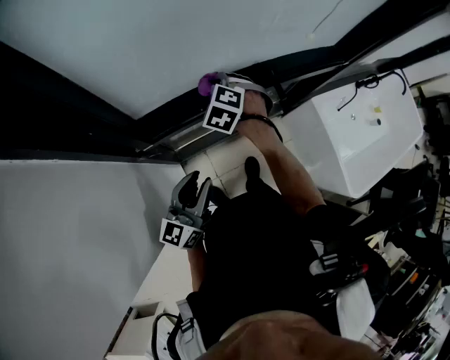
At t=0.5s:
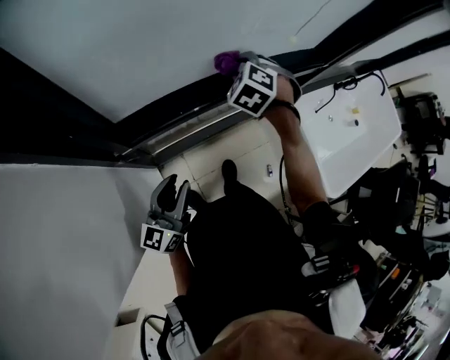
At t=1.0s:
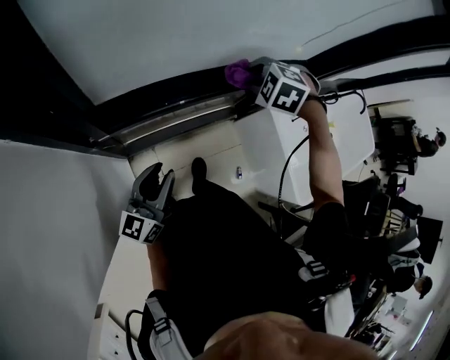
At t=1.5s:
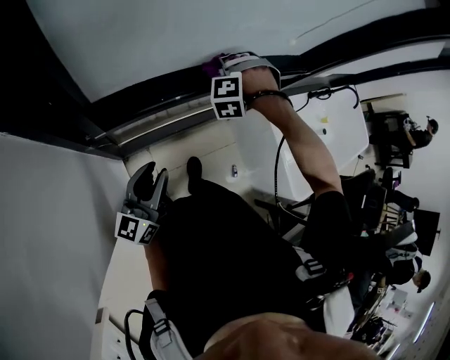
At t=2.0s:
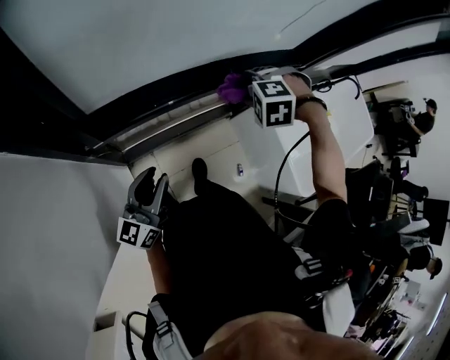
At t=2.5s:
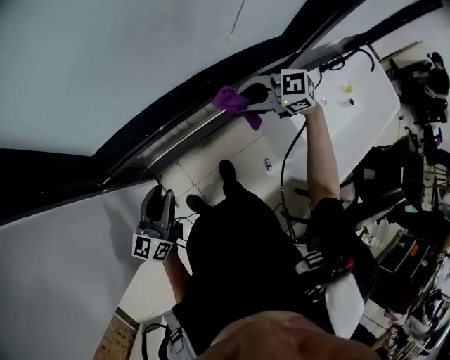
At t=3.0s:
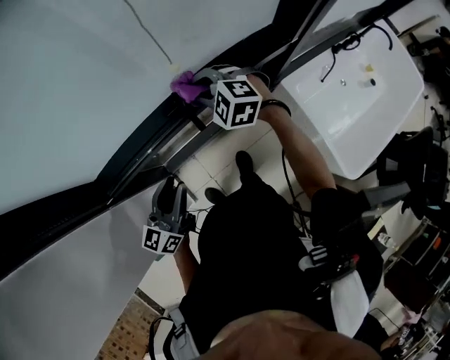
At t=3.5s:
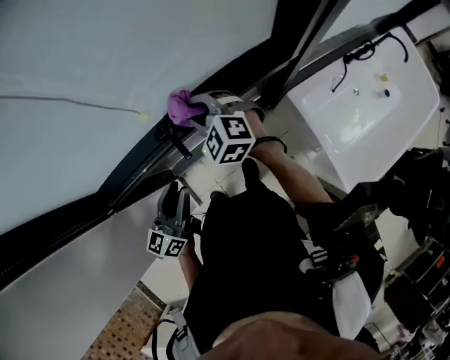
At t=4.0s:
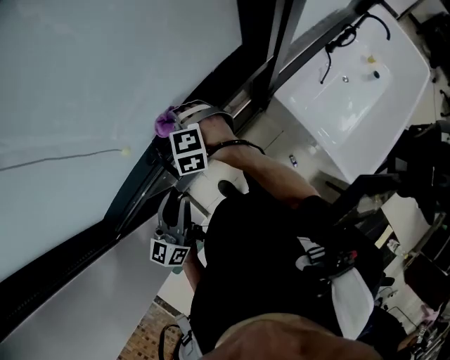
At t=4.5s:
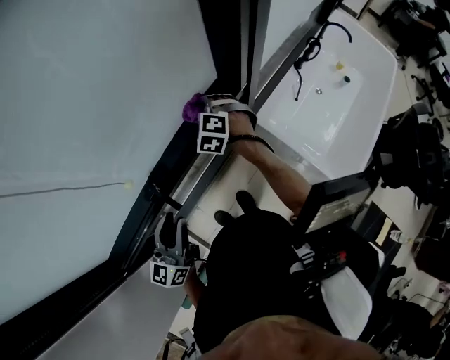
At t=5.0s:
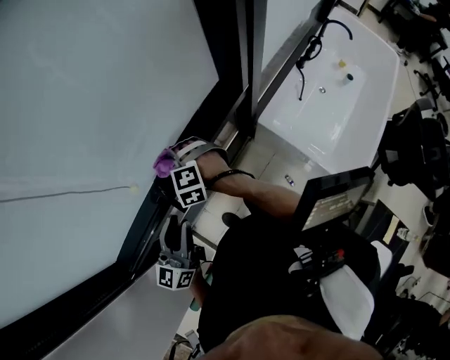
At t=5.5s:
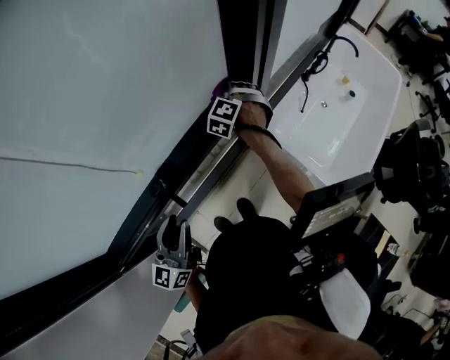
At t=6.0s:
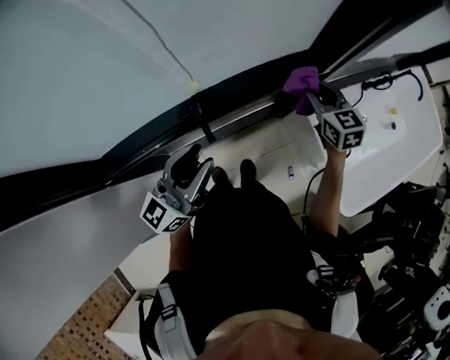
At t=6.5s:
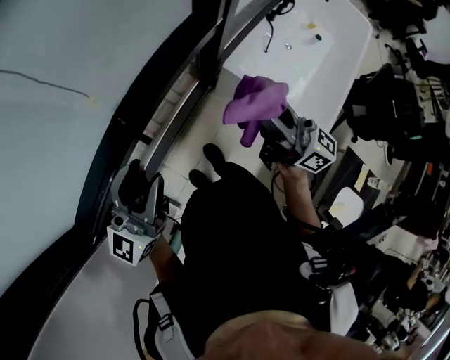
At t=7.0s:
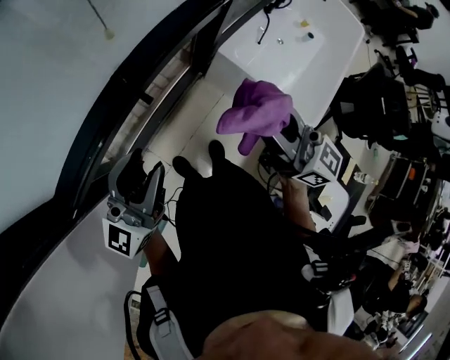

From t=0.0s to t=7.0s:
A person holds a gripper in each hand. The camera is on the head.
From t=0.0s to t=2.0s: The right gripper goes about 20 cm to the right, and changes its angle by about 40 degrees.
From t=2.0s to t=3.5s: The left gripper ends up approximately 25 cm from where it was; the right gripper moves roughly 10 cm, and angles its fingers upward, by some 40 degrees.
From t=3.5s to t=5.0s: The left gripper ends up some 10 cm from where it was. The right gripper swivels about 20 degrees.
From t=5.0s to t=7.0s: The left gripper ends up some 10 cm from where it was, and turns by some 20 degrees. Meanwhile the right gripper changes place by approximately 35 cm, and angles its fingers upward, by about 60 degrees.

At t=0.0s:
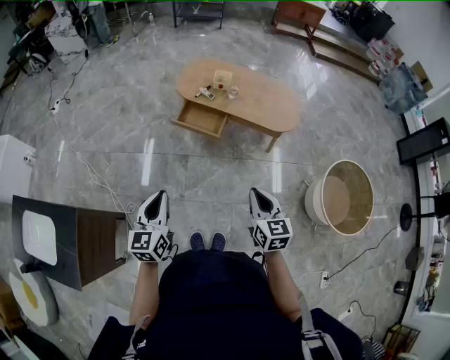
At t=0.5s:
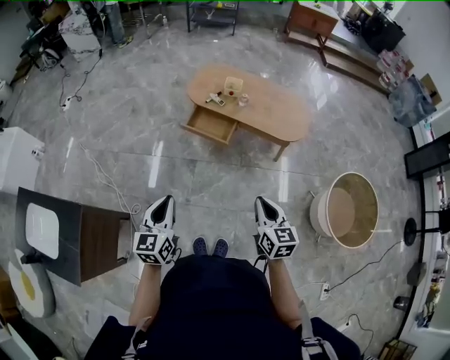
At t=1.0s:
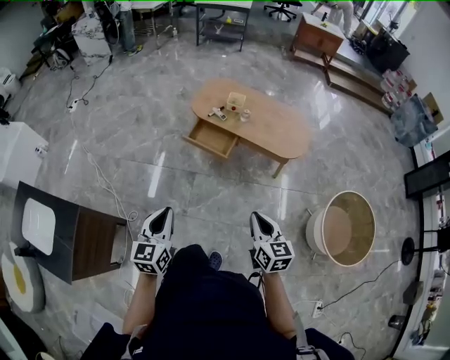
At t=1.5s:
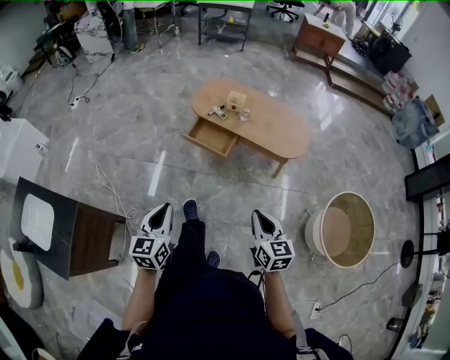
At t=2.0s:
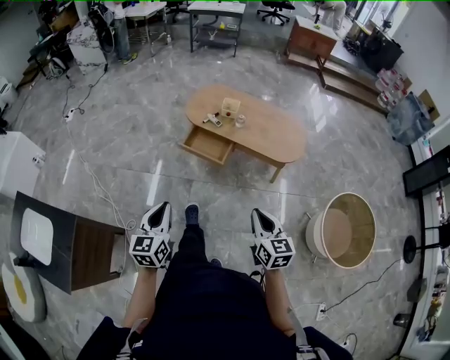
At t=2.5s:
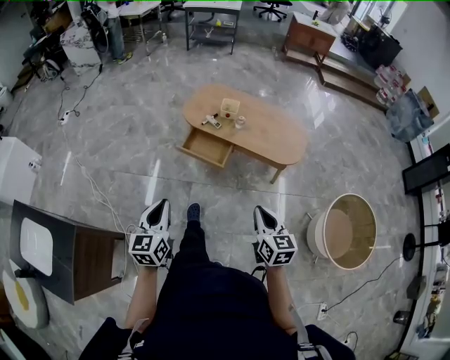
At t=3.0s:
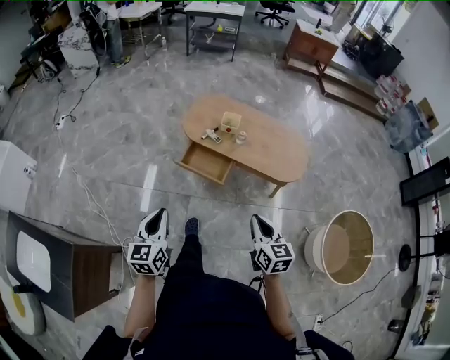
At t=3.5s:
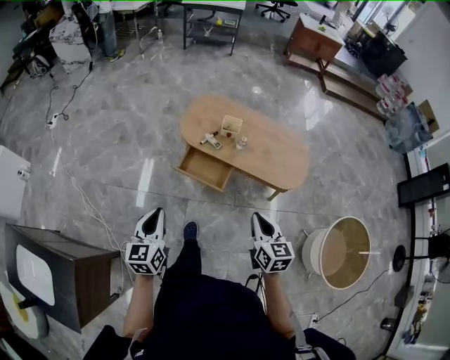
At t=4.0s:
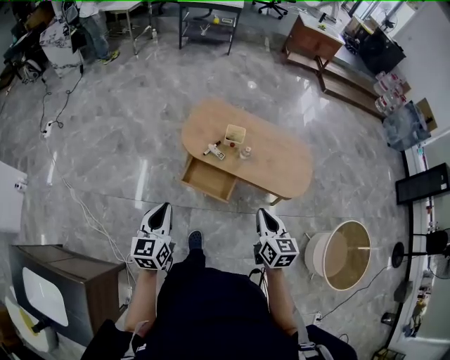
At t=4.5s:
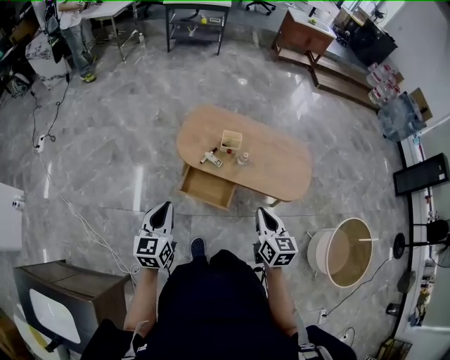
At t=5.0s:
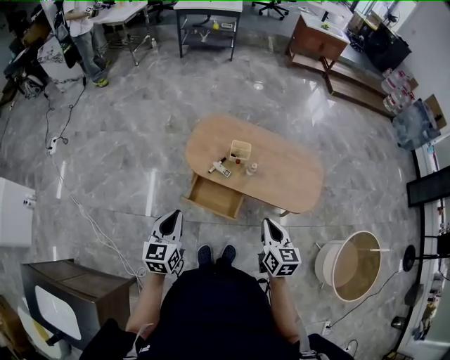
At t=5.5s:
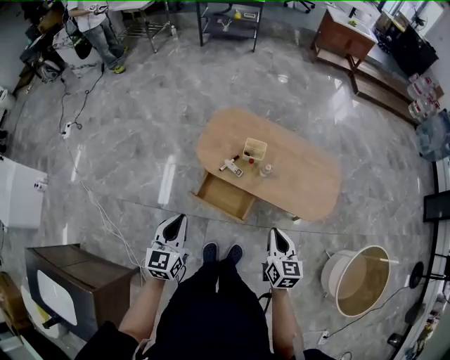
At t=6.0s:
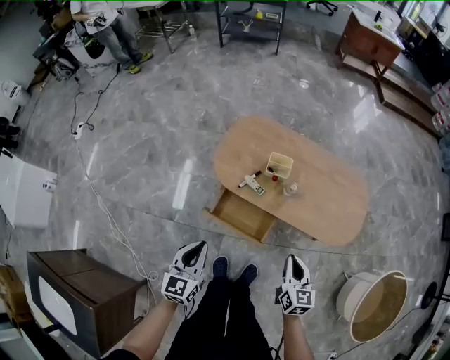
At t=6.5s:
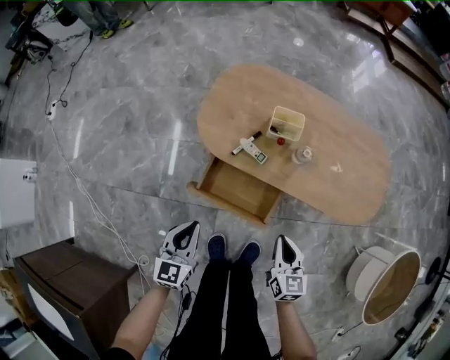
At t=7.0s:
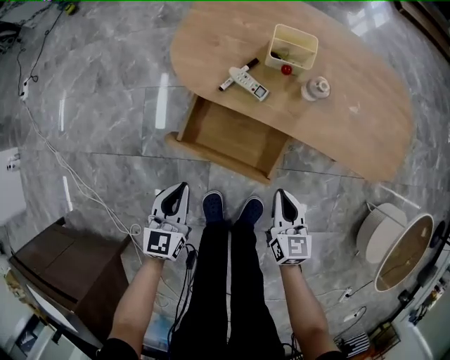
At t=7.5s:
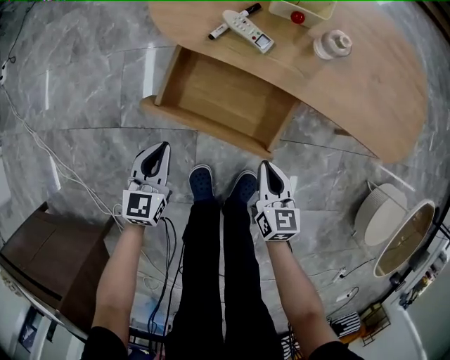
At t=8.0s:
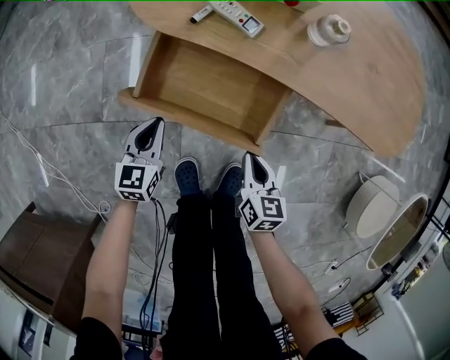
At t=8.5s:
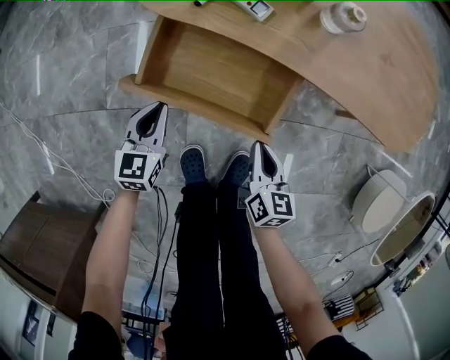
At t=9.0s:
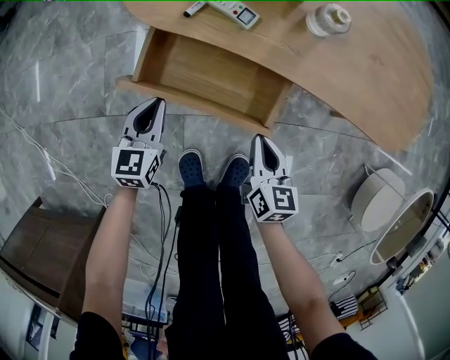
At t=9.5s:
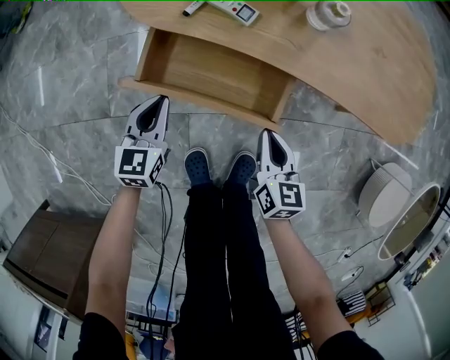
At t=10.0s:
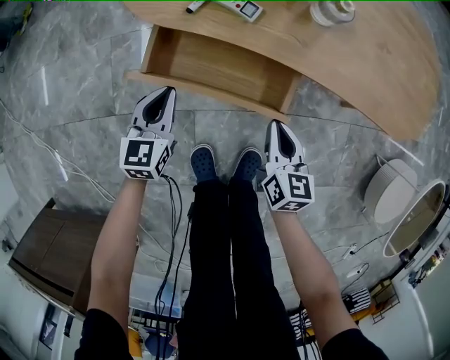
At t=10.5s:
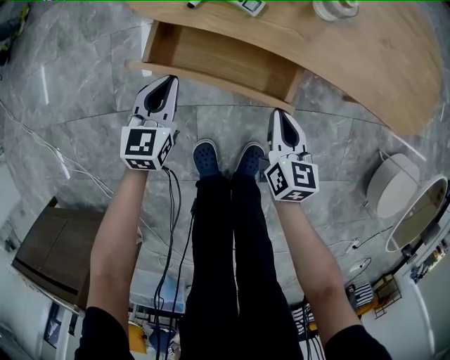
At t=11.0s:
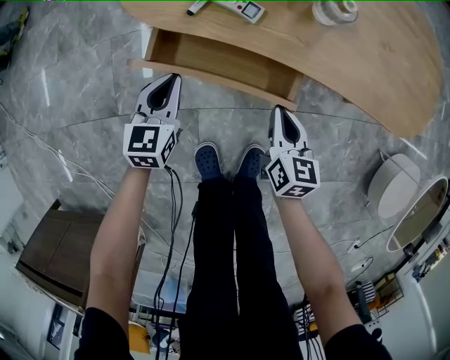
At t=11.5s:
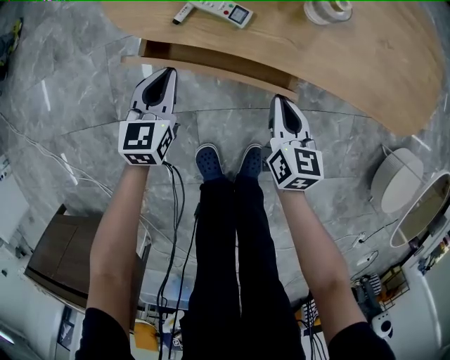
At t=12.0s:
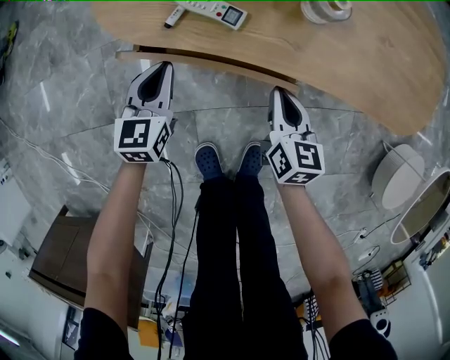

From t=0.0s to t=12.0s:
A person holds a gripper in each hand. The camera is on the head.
From t=0.0s to t=2.0s: The grippers make only small movements.
From t=2.0s to t=4.0s: The grippers both shift forward by about 35 cm.
From t=4.0s to t=6.0s: Both grippers travel together downward and forward, roughly 20 cm.
From t=6.0s to t=8.0s: Both grippers move downward, about 50 cm.
From t=8.0s to t=10.0s: The two grippers go some 5 cm forward.
From t=10.0s to t=12.0s: The two grippers go about 10 cm forward.

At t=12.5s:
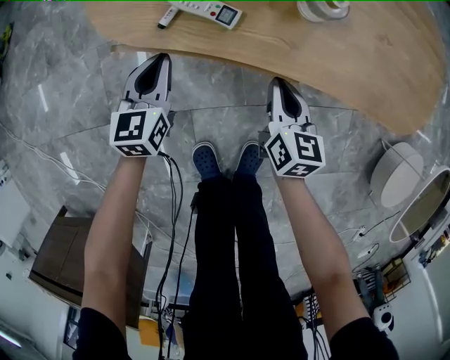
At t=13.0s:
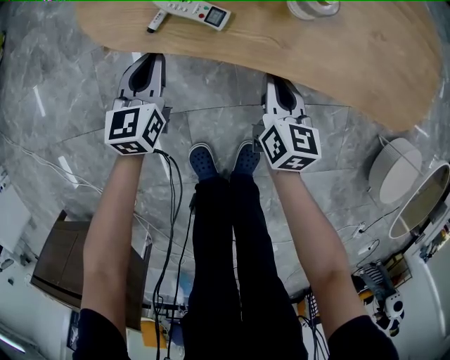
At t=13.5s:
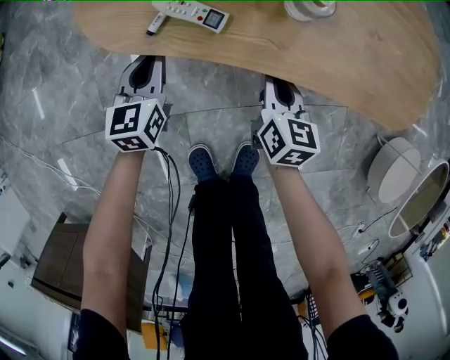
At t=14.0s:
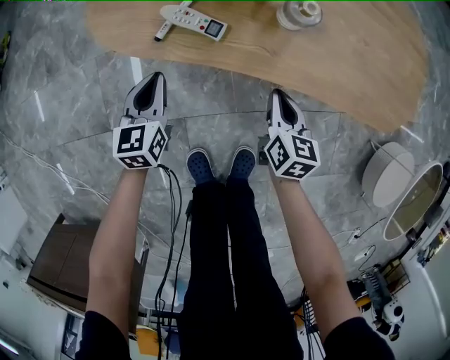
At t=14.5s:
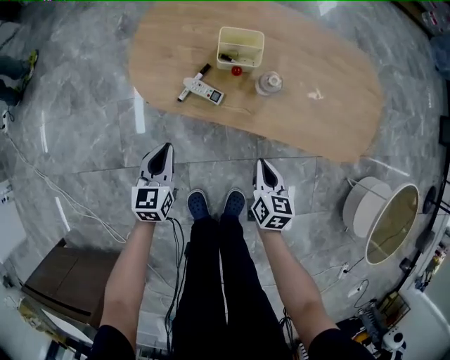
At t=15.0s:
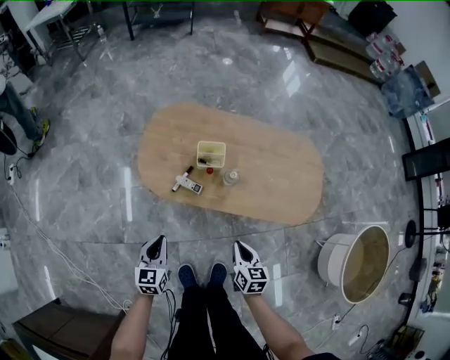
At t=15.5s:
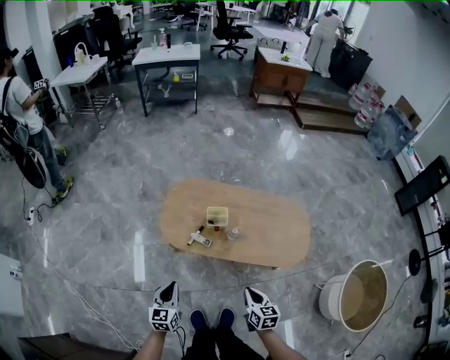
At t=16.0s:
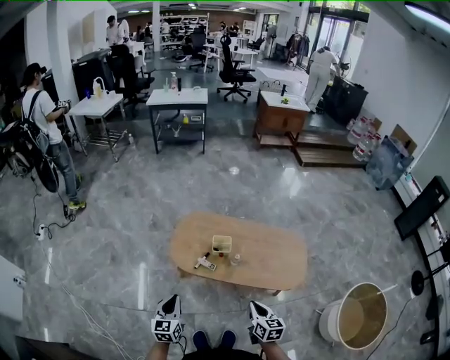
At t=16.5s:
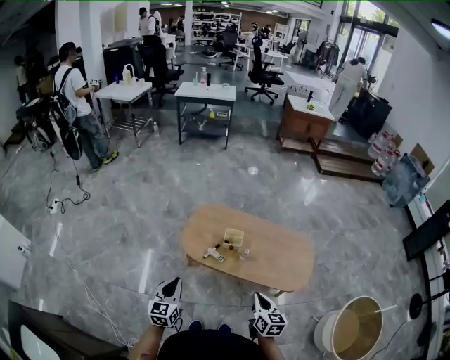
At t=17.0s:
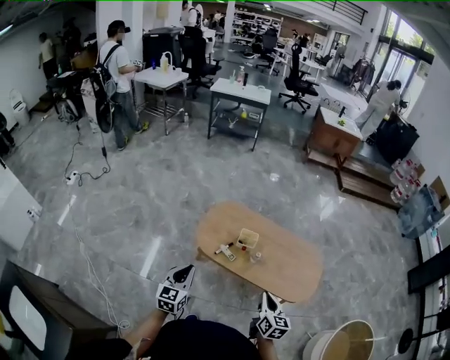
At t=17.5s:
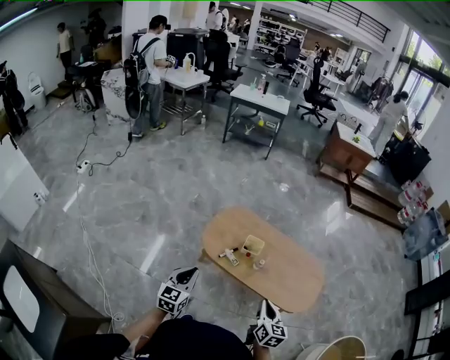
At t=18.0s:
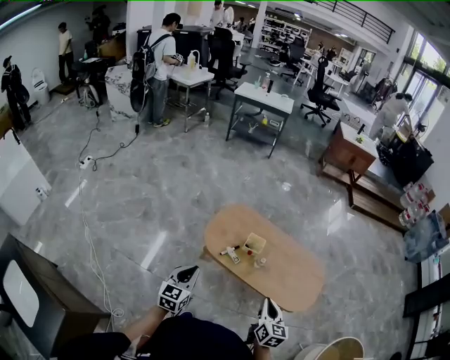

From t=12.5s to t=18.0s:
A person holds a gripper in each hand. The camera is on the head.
From t=12.5s to t=14.5s: The grippers both shift upward and backward by some 15 cm.
From t=14.5s to t=16.0s: Both grippers move upward, some 40 cm.
From t=16.0s to t=18.0s: The left gripper shifts by some 5 cm; the right gripper travels upward by approximately 5 cm.

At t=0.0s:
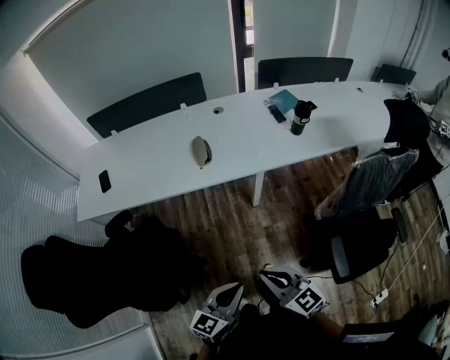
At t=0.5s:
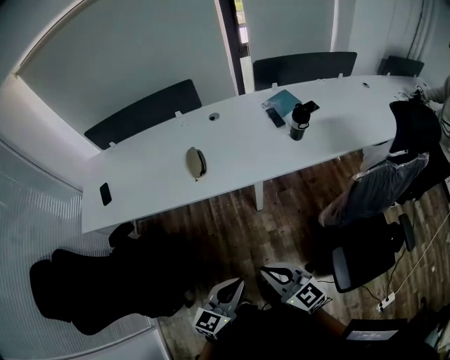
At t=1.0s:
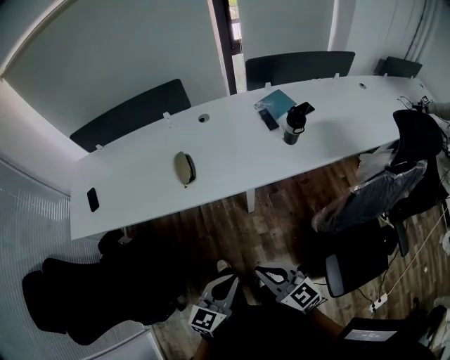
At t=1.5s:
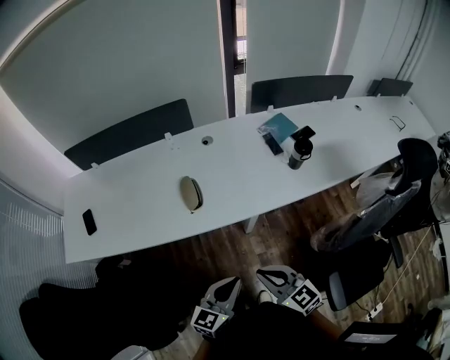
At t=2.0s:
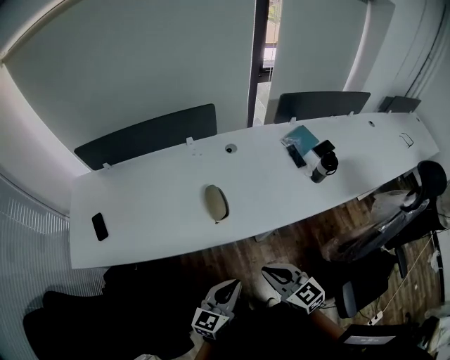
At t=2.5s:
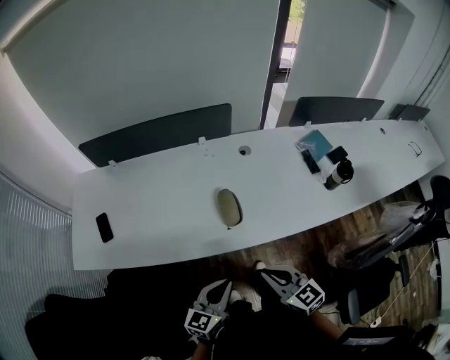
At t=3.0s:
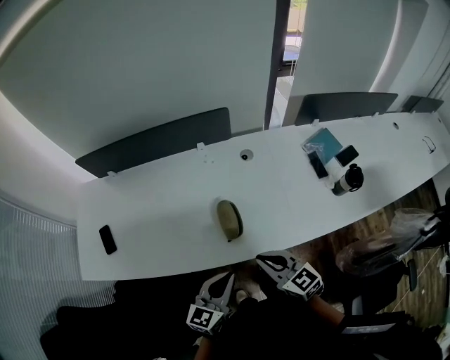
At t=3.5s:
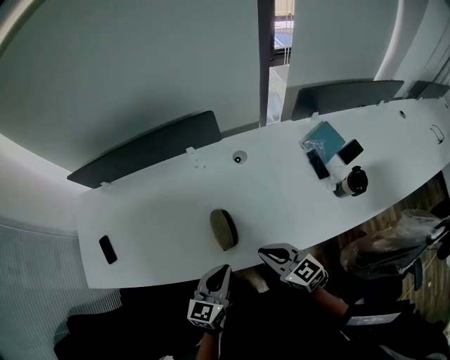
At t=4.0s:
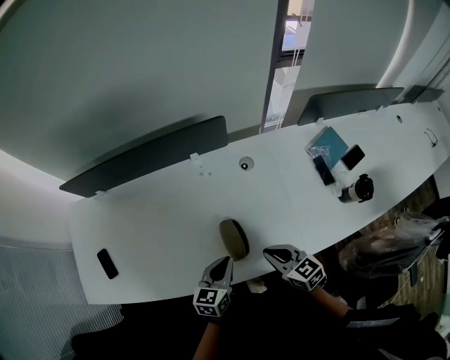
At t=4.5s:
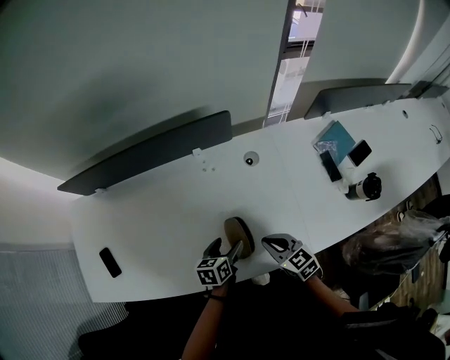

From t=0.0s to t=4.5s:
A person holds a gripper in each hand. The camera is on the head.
From t=0.0s to t=2.0s: The grippers both shift forward by roughly 30 cm.
From t=2.0s to t=4.5s: The two grippers go about 35 cm forward and downward. The left gripper tips its fingers downward by about 30 degrees, and opens.
